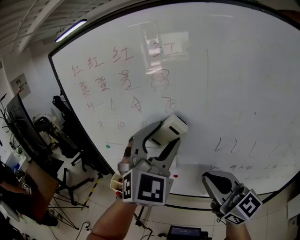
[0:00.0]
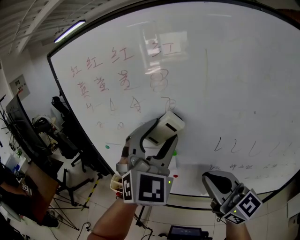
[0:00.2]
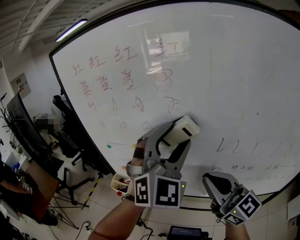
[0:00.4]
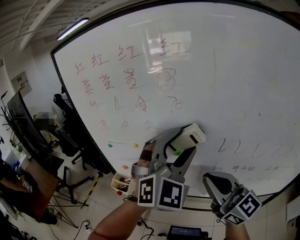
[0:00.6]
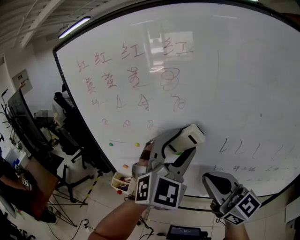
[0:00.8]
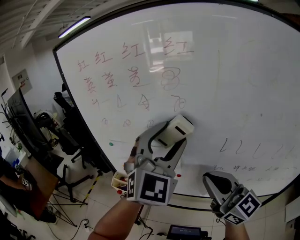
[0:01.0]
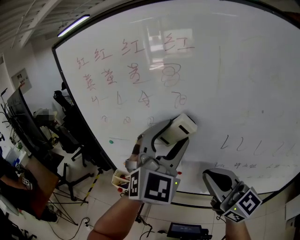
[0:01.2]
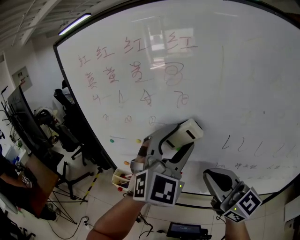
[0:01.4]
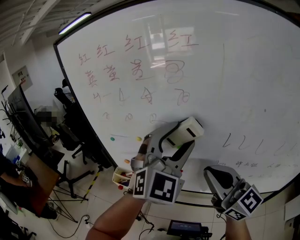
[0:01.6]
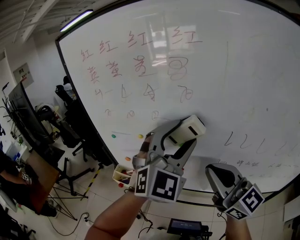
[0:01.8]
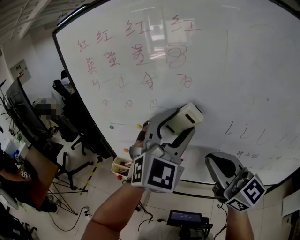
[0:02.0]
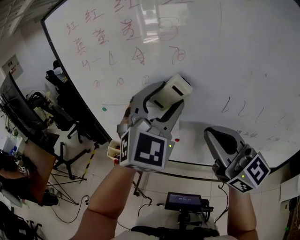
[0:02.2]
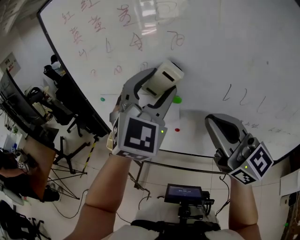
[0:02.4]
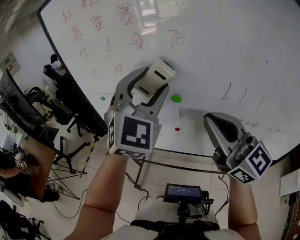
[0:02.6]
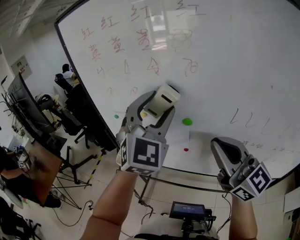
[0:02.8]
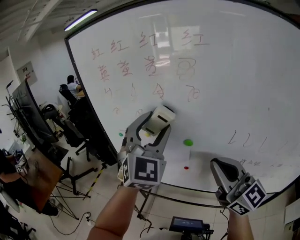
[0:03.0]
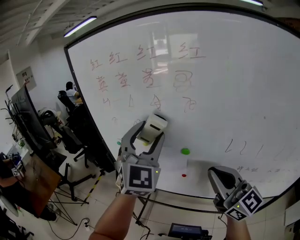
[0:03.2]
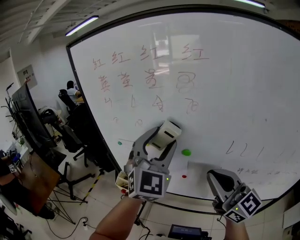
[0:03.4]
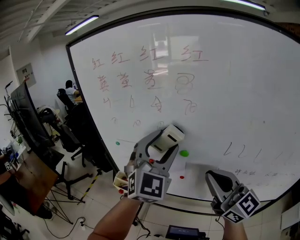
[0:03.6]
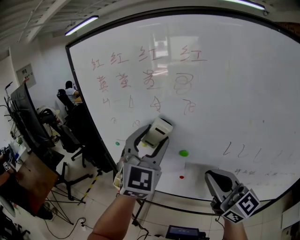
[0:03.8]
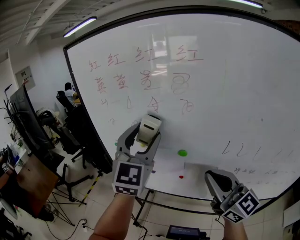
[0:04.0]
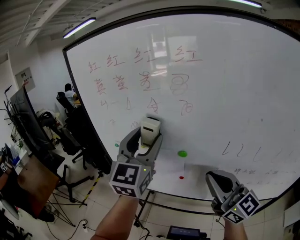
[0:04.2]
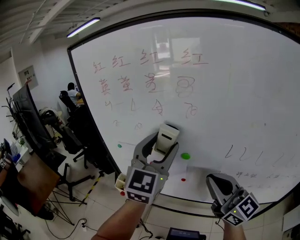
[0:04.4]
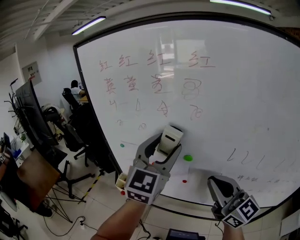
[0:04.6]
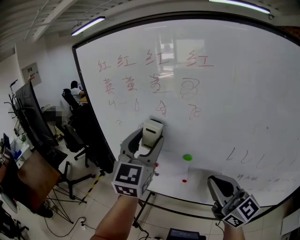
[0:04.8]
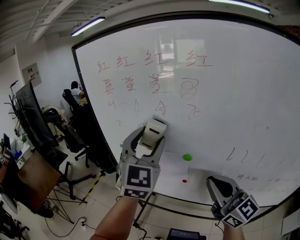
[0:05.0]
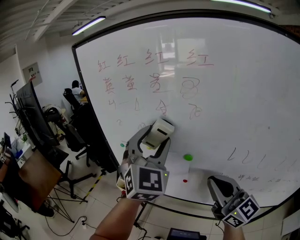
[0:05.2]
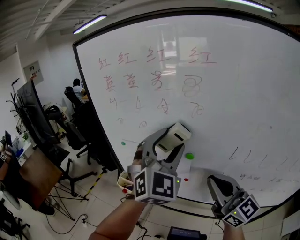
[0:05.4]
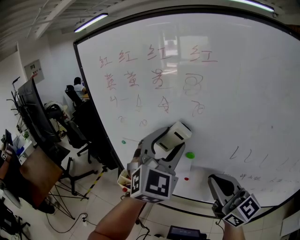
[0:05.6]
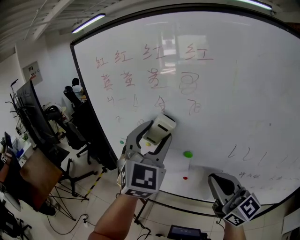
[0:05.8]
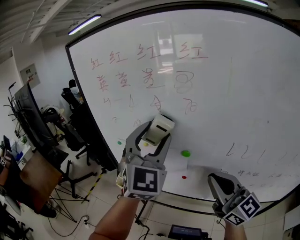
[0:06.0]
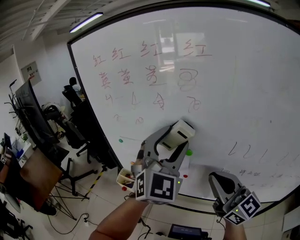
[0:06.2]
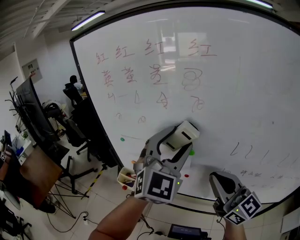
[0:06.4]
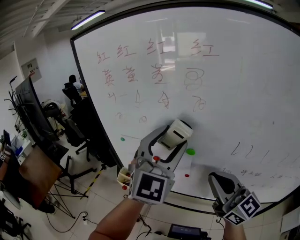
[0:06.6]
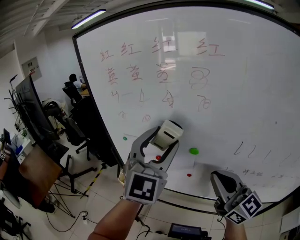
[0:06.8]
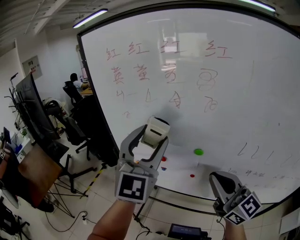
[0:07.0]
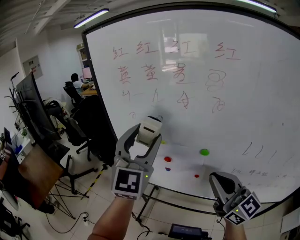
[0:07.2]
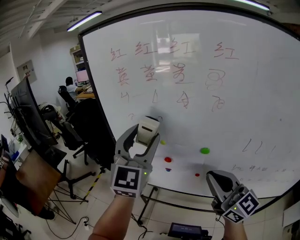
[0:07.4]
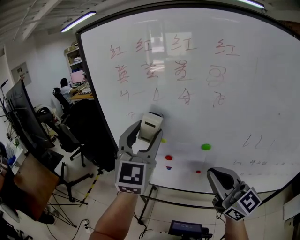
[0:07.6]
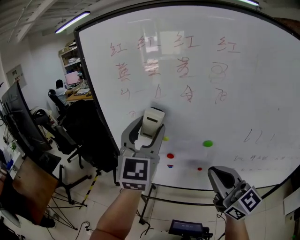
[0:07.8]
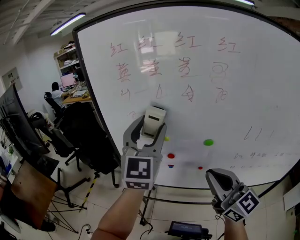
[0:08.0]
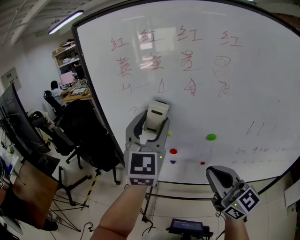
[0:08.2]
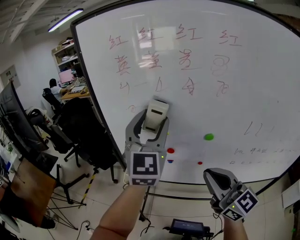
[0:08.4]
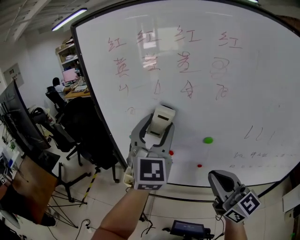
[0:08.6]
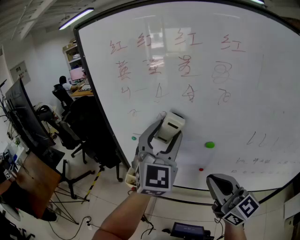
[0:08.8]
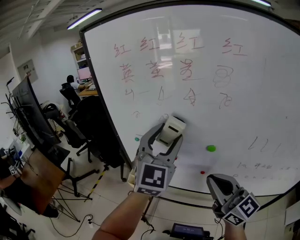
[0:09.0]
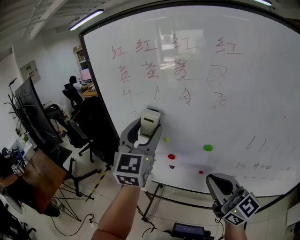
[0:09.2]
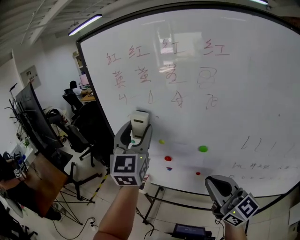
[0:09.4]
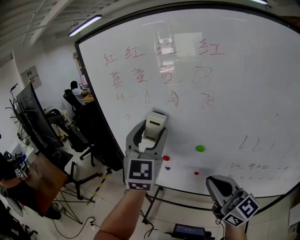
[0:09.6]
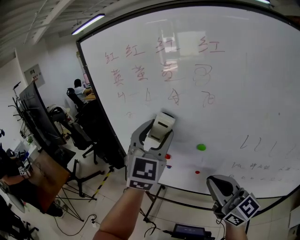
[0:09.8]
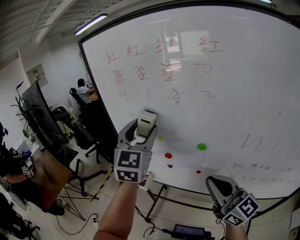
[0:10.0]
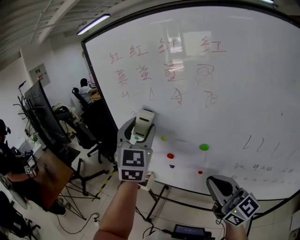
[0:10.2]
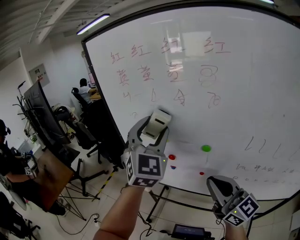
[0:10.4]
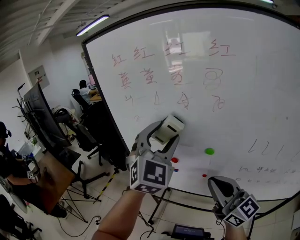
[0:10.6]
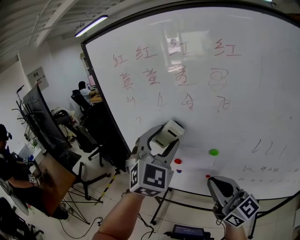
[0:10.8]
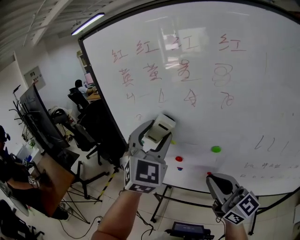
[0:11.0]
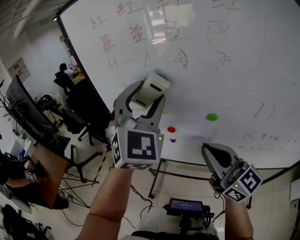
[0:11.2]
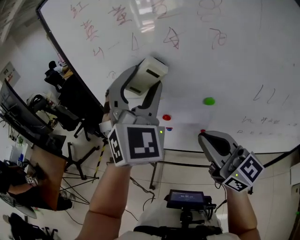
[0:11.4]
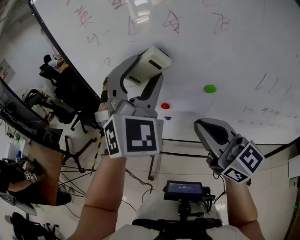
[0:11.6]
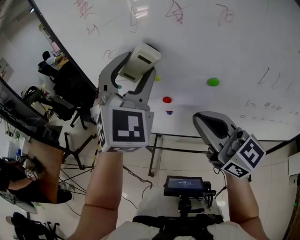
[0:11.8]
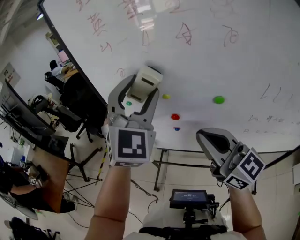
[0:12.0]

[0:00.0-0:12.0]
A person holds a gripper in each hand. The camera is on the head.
0:00.0 to 0:01.6: The grippers make only small movements.
0:01.6 to 0:03.0: The left gripper goes approximately 10 cm to the left.
0:03.0 to 0:04.4: The left gripper changes its angle by some 20 degrees.
0:04.4 to 0:06.0: The left gripper swivels about 20 degrees.
0:06.0 to 0:07.6: The grippers both shift to the left by about 10 cm.
0:07.6 to 0:09.0: The left gripper moves approximately 5 cm.
0:09.0 to 0:10.4: The left gripper swings left and right, about 10 cm each way, with 2 reversals.
0:10.4 to 0:12.0: The right gripper is displaced to the left and forward by roughly 10 cm.

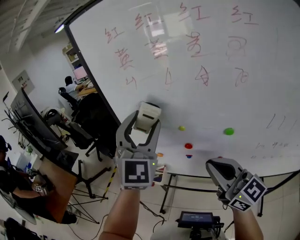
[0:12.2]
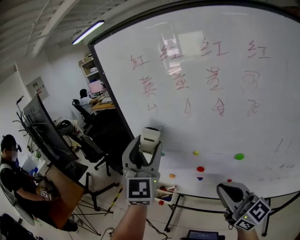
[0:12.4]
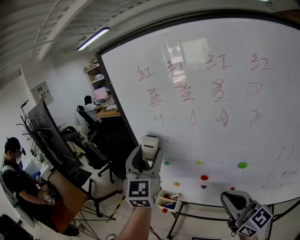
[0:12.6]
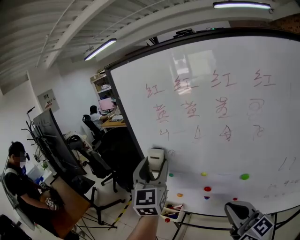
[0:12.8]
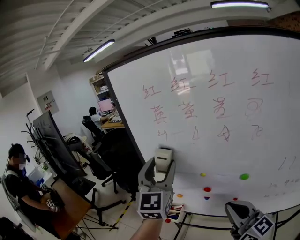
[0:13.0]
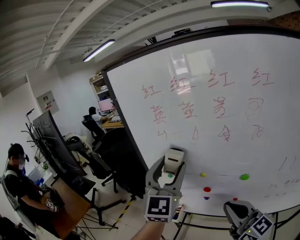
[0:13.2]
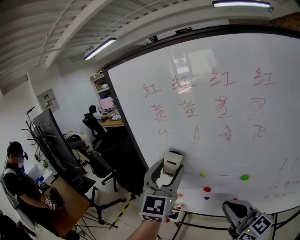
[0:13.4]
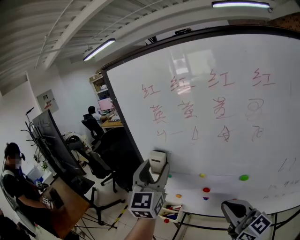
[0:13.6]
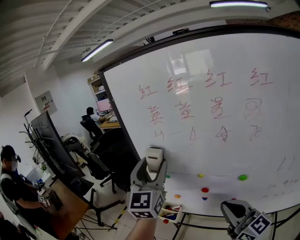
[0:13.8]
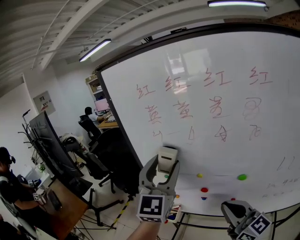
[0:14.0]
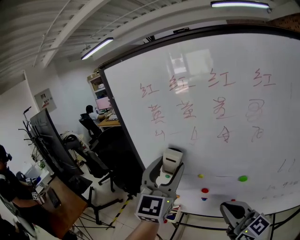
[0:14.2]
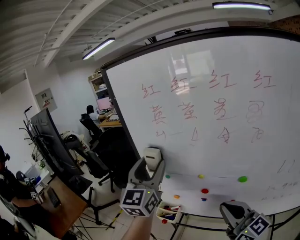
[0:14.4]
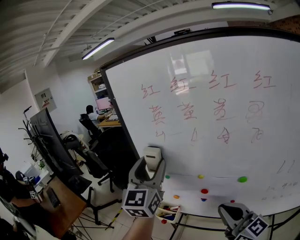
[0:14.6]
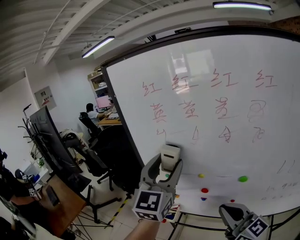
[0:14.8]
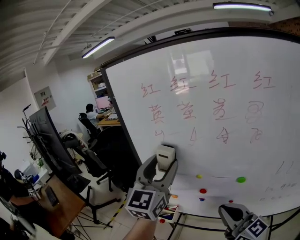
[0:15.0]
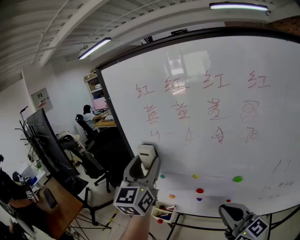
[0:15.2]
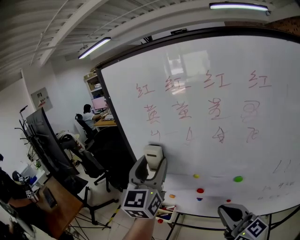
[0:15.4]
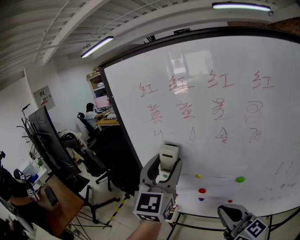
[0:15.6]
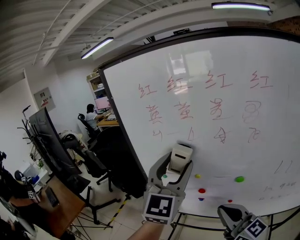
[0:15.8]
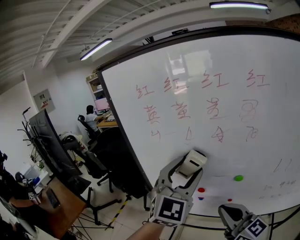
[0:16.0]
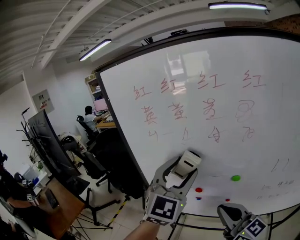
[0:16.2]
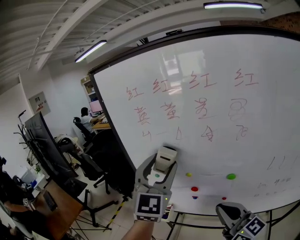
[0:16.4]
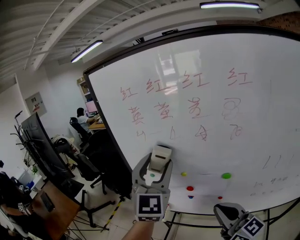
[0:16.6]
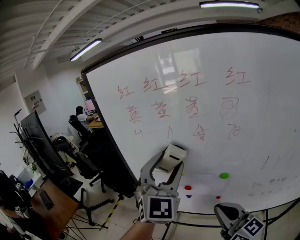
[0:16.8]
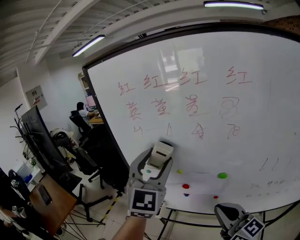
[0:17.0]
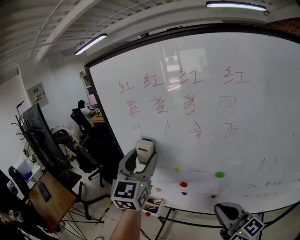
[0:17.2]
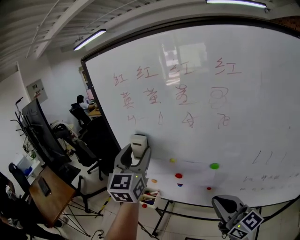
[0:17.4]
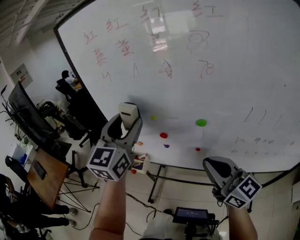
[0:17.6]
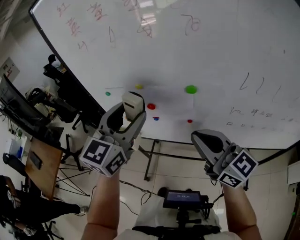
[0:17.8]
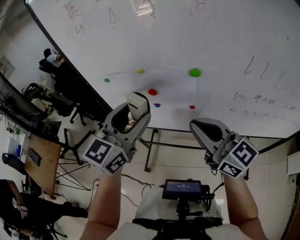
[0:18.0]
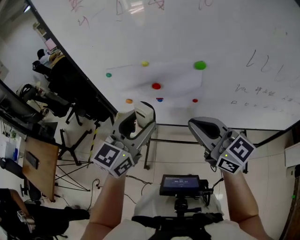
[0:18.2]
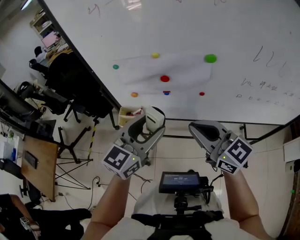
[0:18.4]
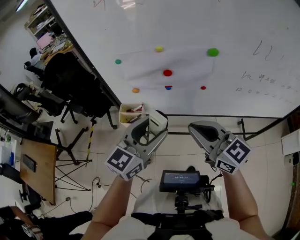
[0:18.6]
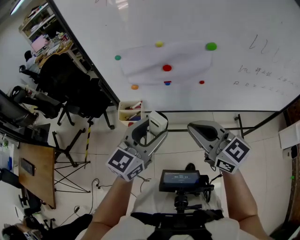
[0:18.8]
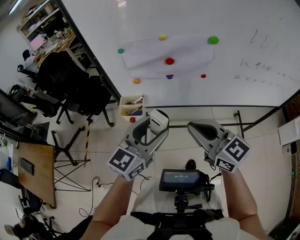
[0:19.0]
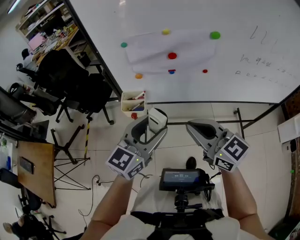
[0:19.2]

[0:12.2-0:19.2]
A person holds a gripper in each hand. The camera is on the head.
0:12.2 to 0:13.6: The left gripper swings left and right, some 5 cm each way, with 2 reversals, and rotates about 20 degrees.
0:13.6 to 0:15.0: The left gripper moves left and right over approximately 5 cm, changing direction 2 times.
0:15.0 to 0:16.4: The left gripper goes left and right, roughly 15 cm each way, reversing 2 times.
0:16.4 to 0:17.8: The left gripper shifts some 15 cm downward and backward, and rotates about 30 degrees, while the right gripper changes place by some 5 cm.
0:17.8 to 0:19.2: The right gripper travels to the left, downward and backward by some 20 cm. The left gripper heads downward, backward and to the left, covering approximately 25 cm, and swivels roughly 20 degrees.

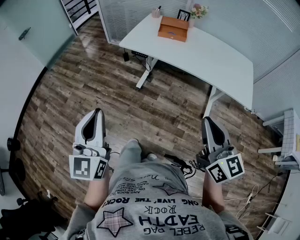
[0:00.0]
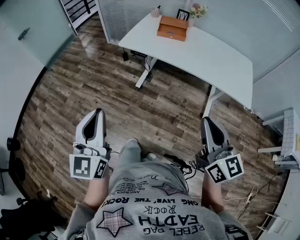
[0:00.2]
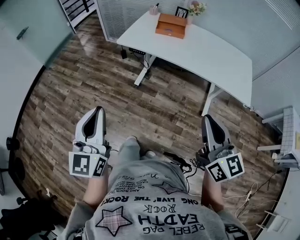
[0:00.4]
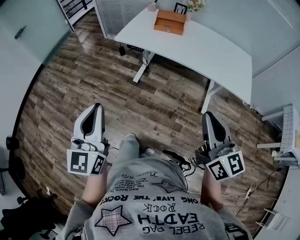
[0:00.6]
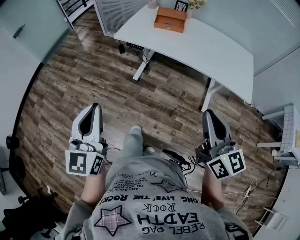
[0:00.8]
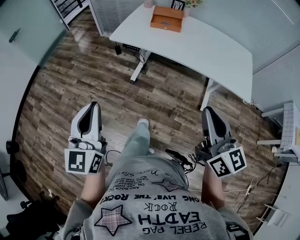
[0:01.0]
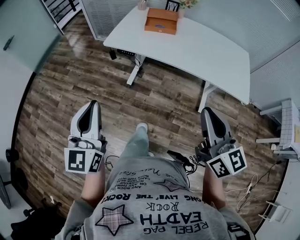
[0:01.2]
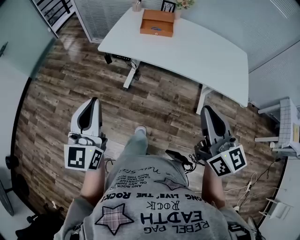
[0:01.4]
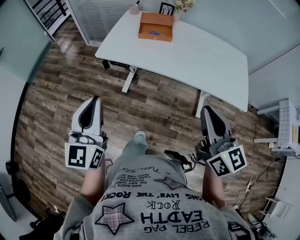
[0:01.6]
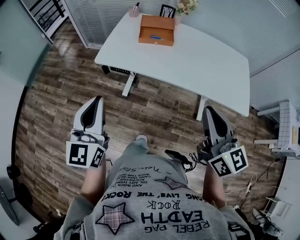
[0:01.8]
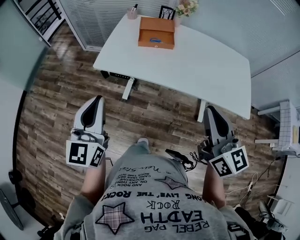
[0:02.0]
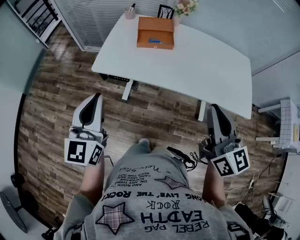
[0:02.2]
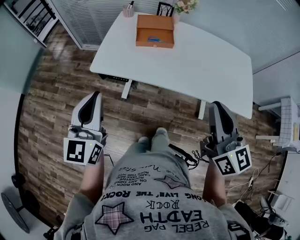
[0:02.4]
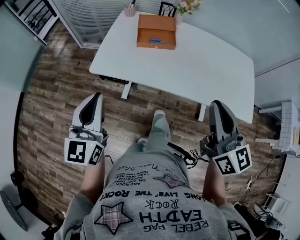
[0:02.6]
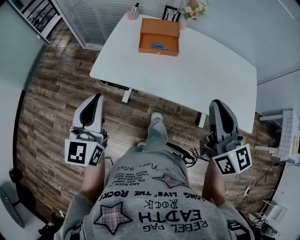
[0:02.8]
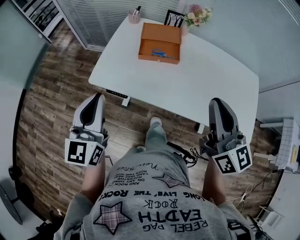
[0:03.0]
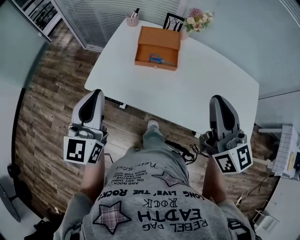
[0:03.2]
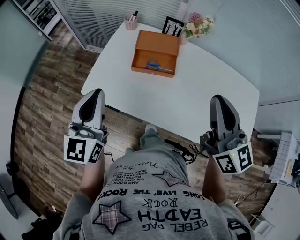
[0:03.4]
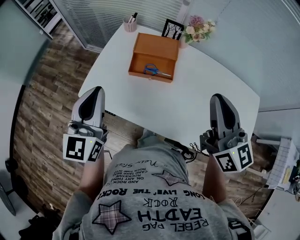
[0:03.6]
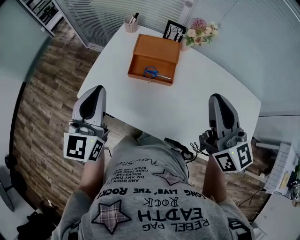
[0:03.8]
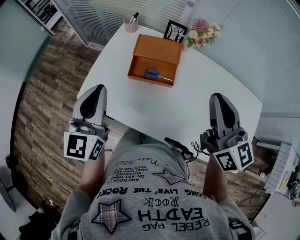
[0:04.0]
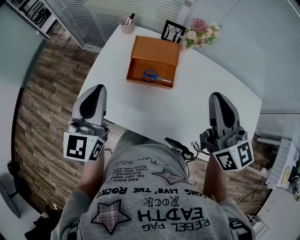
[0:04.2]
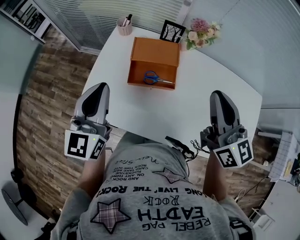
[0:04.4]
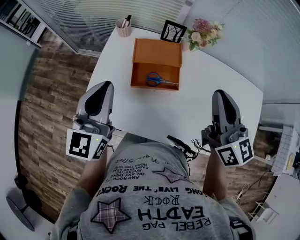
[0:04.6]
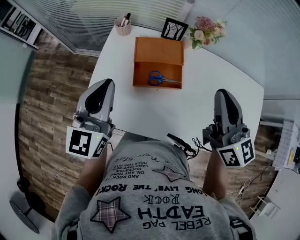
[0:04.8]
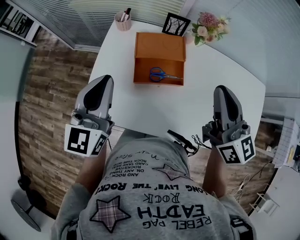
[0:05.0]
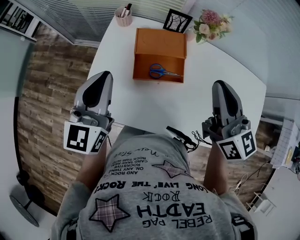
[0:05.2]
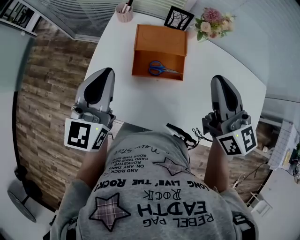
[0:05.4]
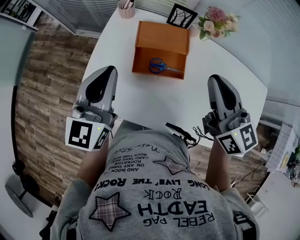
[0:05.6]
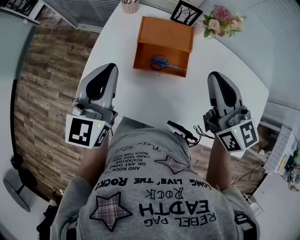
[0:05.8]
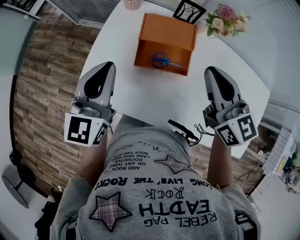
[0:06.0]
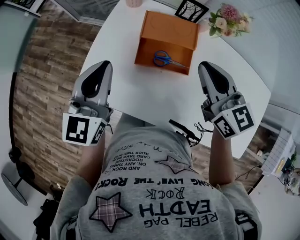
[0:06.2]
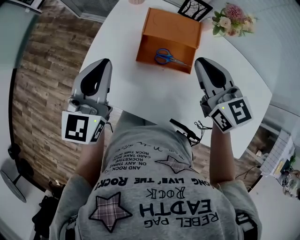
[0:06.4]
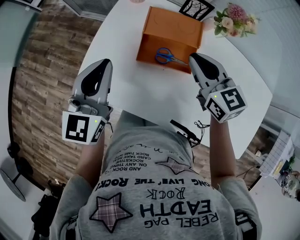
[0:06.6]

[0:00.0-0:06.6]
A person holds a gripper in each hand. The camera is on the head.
0:00.0 to 0:01.6: The two grippers go roughly 20 cm forward.
0:01.6 to 0:03.2: Both grippers move forward, about 30 cm.
0:03.2 to 0:05.0: The grippers both shift forward by some 20 cm.
0:05.0 to 0:06.6: The right gripper is displaced downward and forward by some 15 cm, and swivels about 30 degrees, while the left gripper shifts about 5 cm downward.
